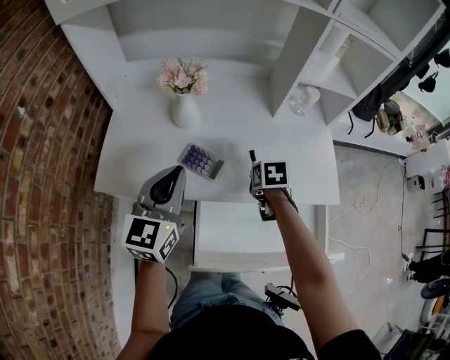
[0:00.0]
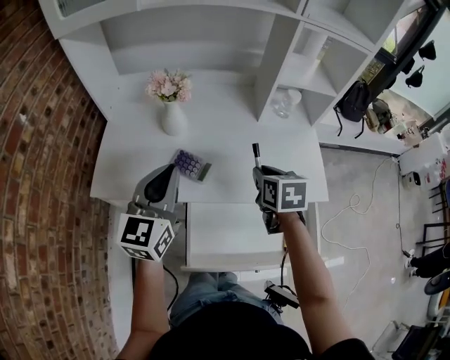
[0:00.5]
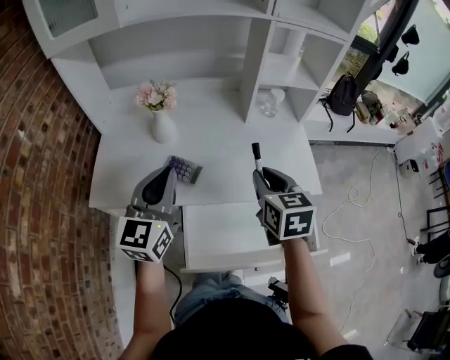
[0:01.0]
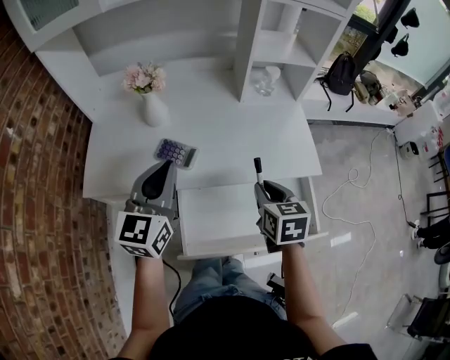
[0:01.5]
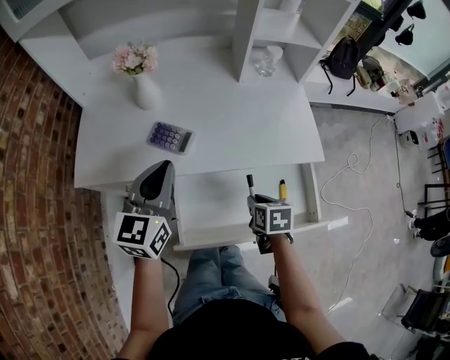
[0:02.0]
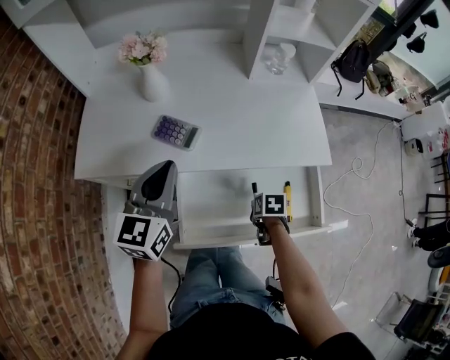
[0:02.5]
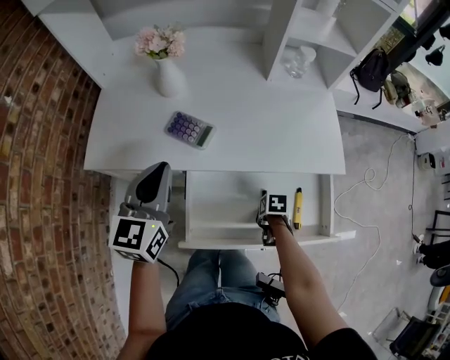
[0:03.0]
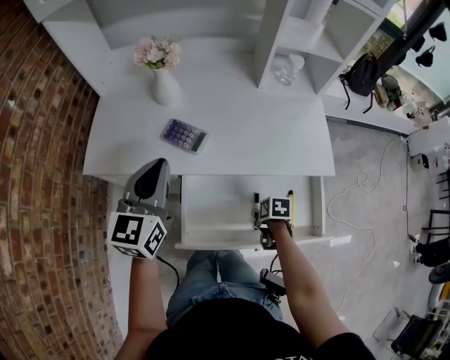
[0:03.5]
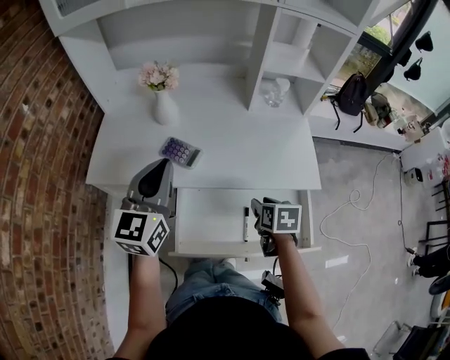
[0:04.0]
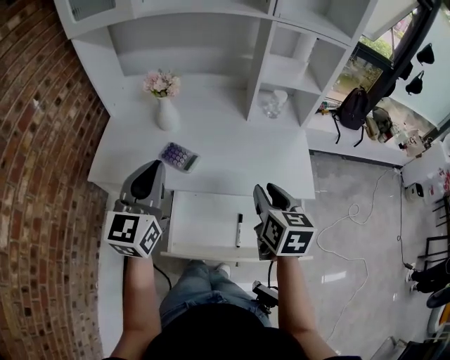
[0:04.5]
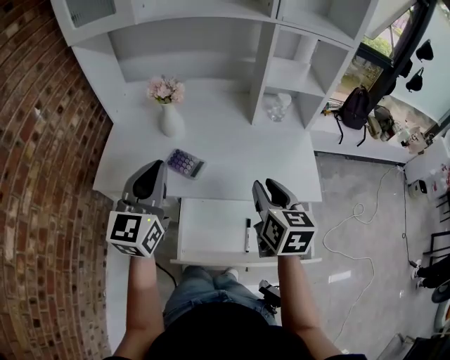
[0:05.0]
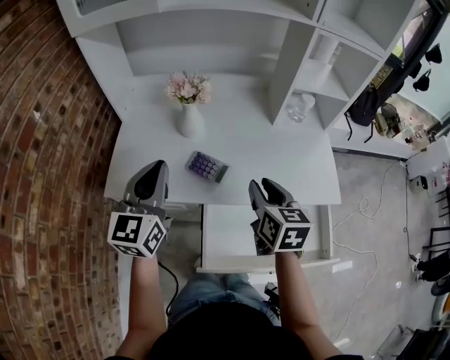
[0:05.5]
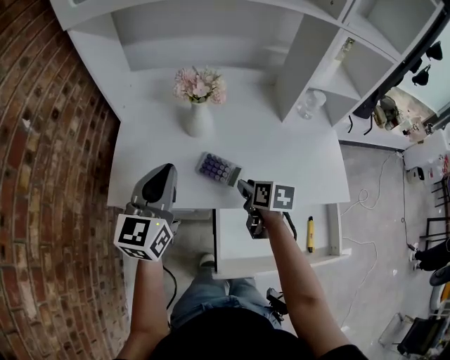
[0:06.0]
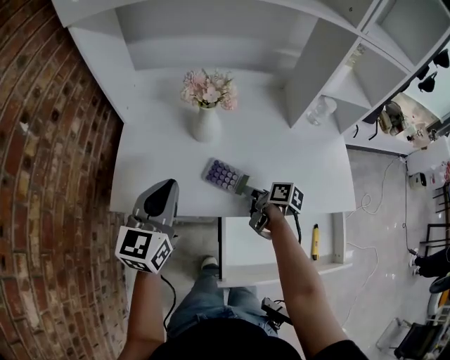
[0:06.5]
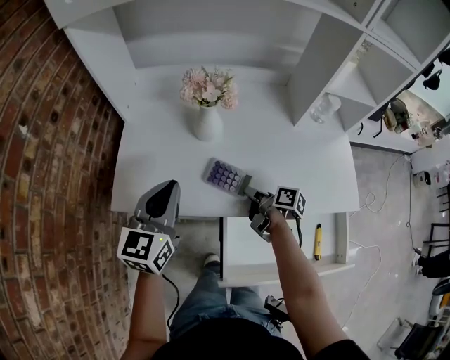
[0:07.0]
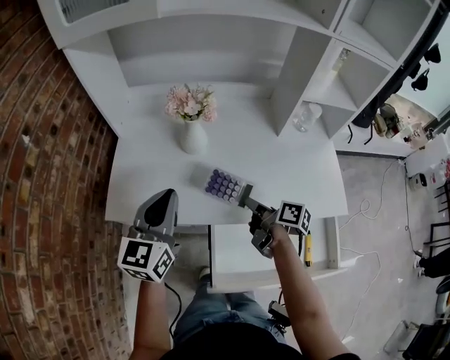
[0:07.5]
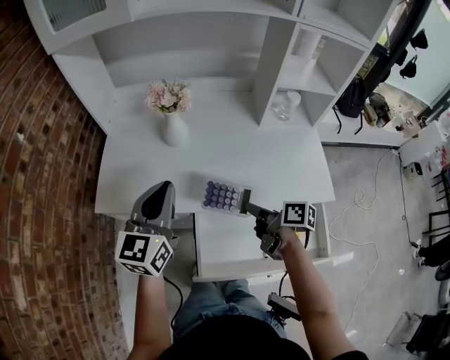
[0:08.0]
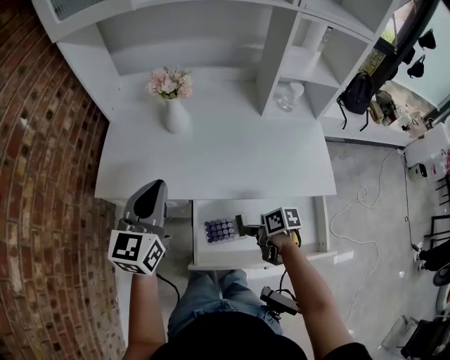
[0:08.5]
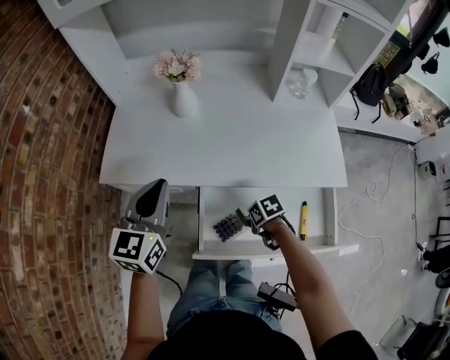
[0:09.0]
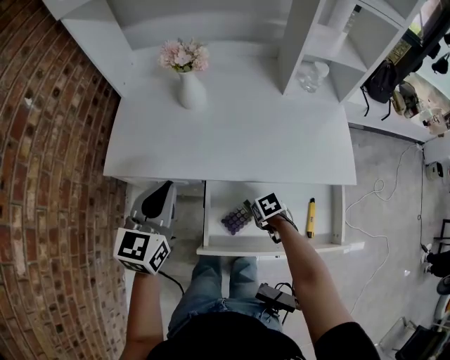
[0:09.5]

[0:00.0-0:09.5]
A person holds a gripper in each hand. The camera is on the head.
0:00.0 to 0:02.0: The left gripper shifts roughly 5 cm to the right; the right gripper goes about 20 cm backward and to the right, and moves roughly 20 cm upward and comes back.
0:02.0 to 0:04.0: The right gripper goes downward and returns, roughly 15 cm each way, while the left gripper heads upward, covering about 5 cm.
0:04.0 to 0:05.5: The left gripper goes some 10 cm to the left and forward; the right gripper is displaced upward, to the left and forward by about 20 cm, and turns by approximately 30 degrees.
0:05.5 to 0:07.5: The left gripper moves downward, approximately 5 cm; the right gripper is displaced downward by roughly 15 cm, and twists approximately 50 degrees clockwise, seen from behind.
0:07.5 to 0:09.5: The left gripper moves some 10 cm. The right gripper travels downward by approximately 20 cm, and tilts its fingers some 50 degrees downward.

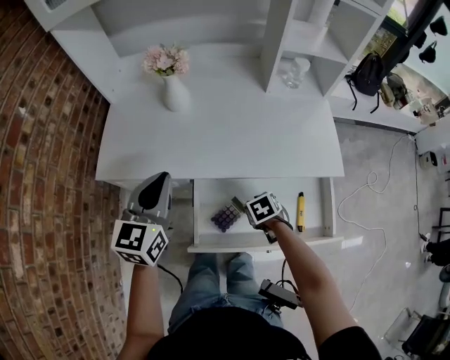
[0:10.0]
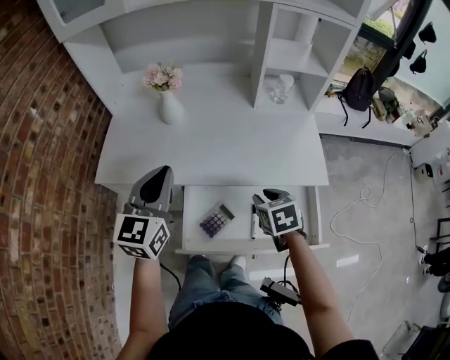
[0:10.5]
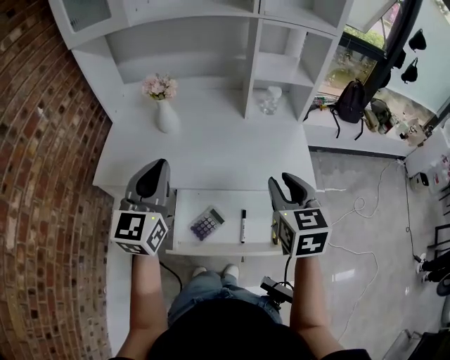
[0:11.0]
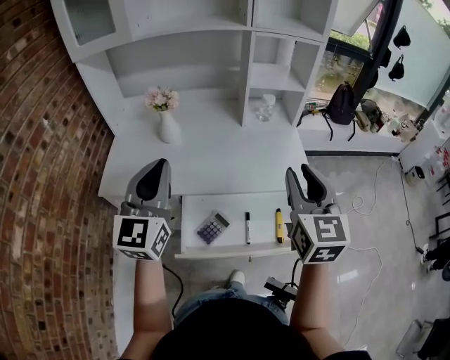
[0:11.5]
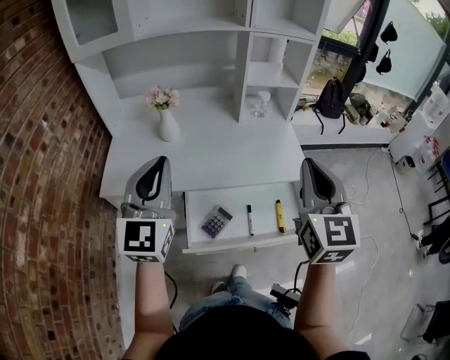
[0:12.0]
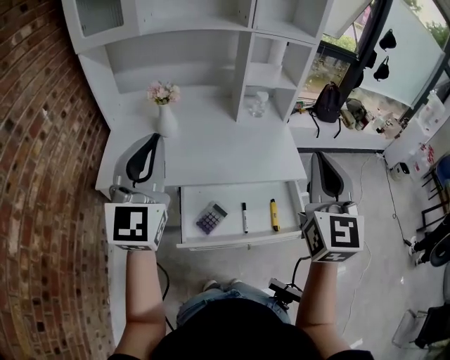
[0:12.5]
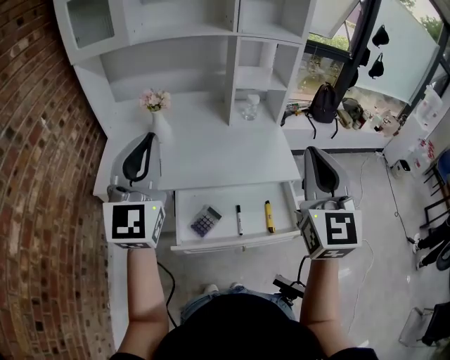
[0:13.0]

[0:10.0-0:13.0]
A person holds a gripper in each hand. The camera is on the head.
0:10.0 to 0:11.5: The right gripper is displaced upward by approximately 40 cm, and tips its fingers upward by approximately 60 degrees. The left gripper shifts approximately 15 cm upward and to the right, and swivels about 20 degrees.
0:11.5 to 0:13.0: The right gripper travels upward and backward by some 10 cm. The left gripper goes about 10 cm upward.

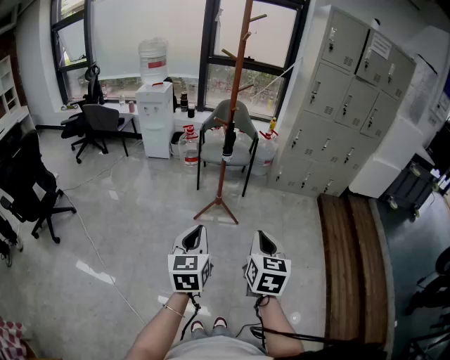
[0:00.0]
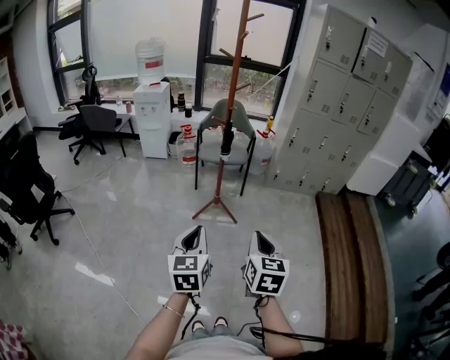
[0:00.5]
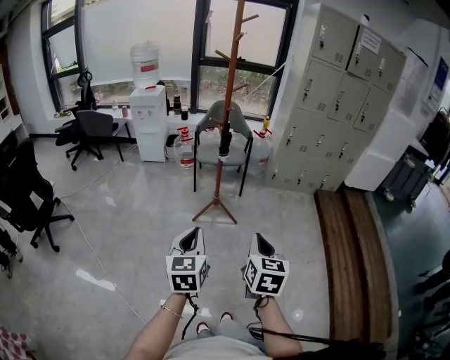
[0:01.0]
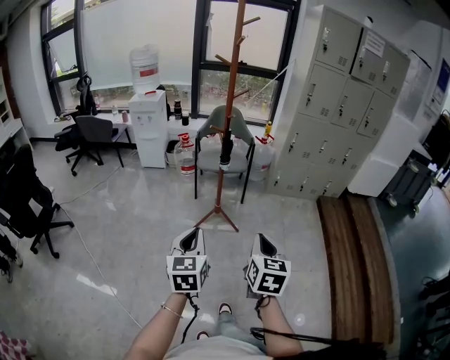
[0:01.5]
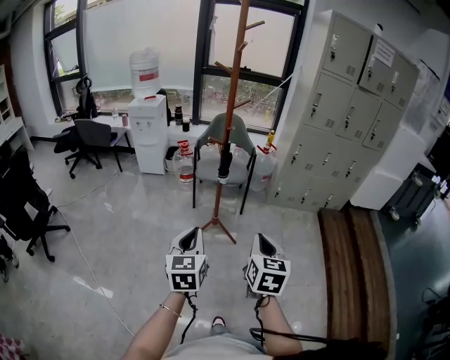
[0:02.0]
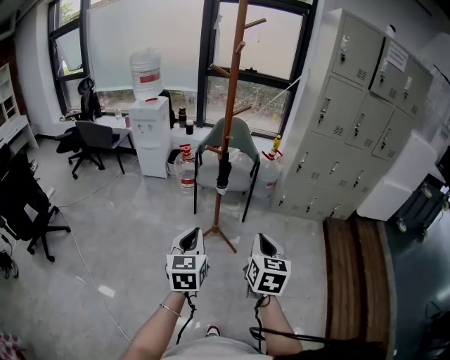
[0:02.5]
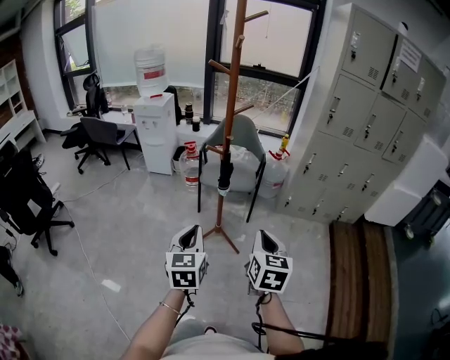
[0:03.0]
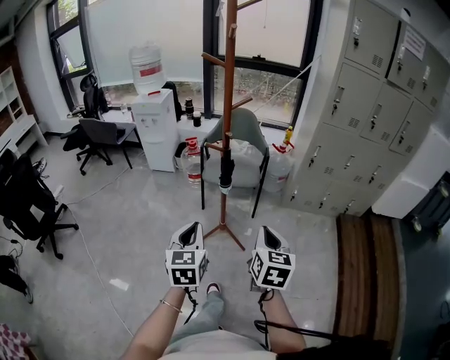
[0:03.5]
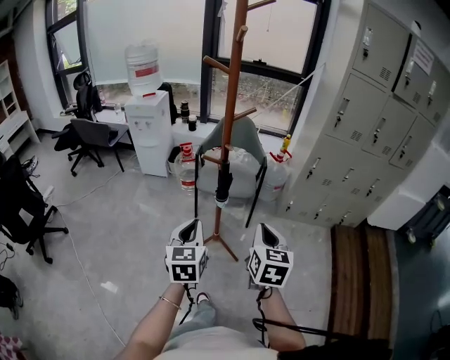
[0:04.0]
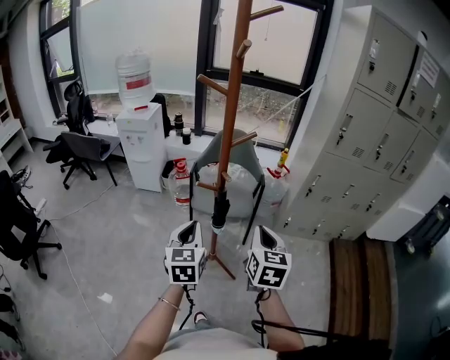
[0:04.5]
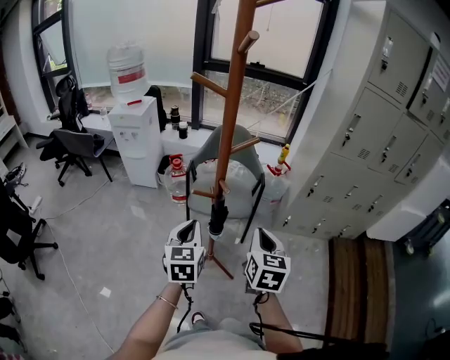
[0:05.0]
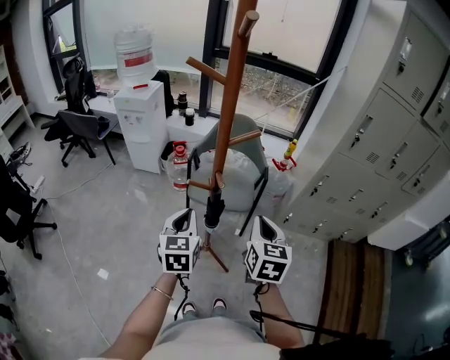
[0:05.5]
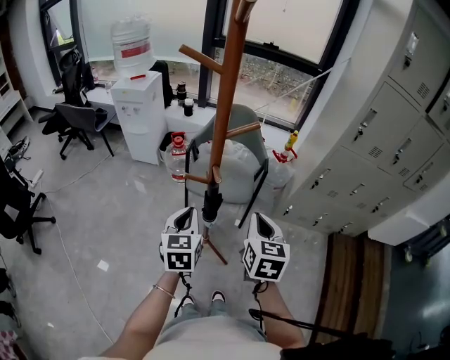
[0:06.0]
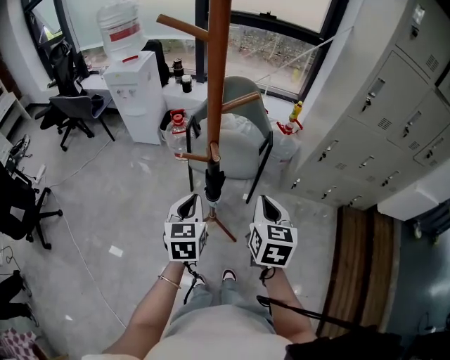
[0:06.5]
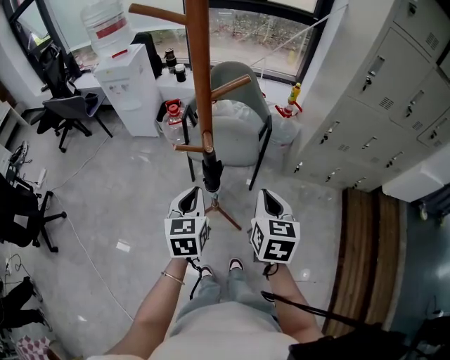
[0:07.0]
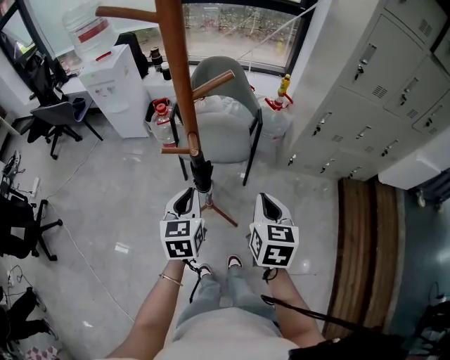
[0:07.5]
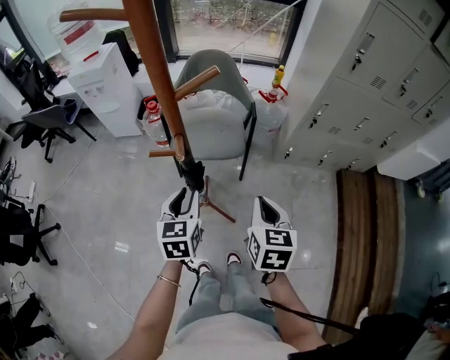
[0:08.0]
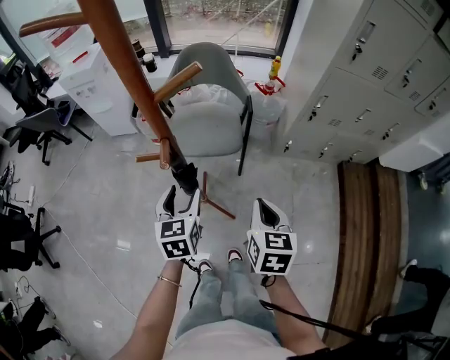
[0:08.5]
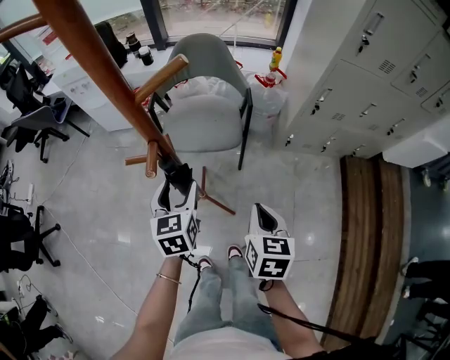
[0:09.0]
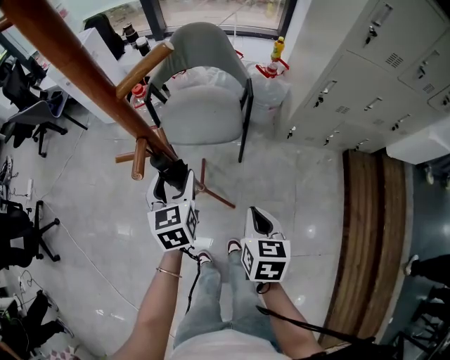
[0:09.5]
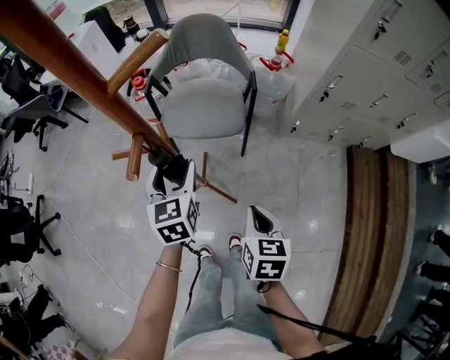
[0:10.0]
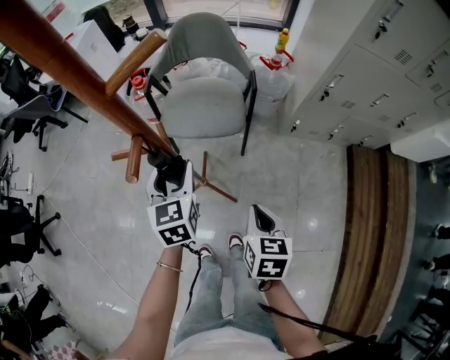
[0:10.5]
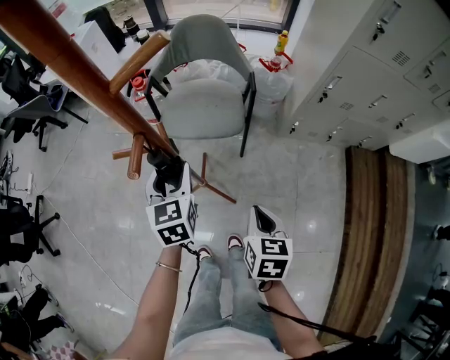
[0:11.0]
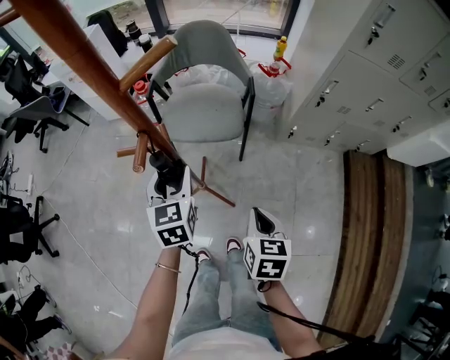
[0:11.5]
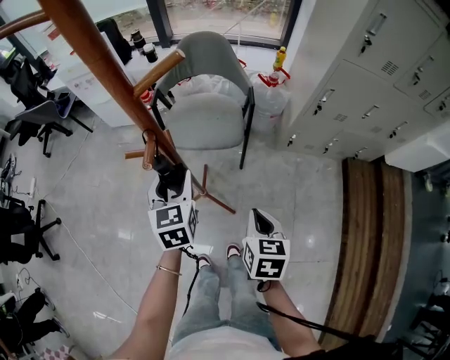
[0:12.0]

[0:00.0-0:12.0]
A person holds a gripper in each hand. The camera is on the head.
0:00.0 to 0:02.0: The two grippers go approximately 15 cm forward.
0:02.0 to 0:04.0: The two grippers go some 25 cm forward.
0:04.0 to 0:06.0: Both grippers travel together forward, about 20 cm.
0:06.0 to 0:08.0: The right gripper heads downward and to the right, covering approximately 10 cm. The left gripper goes roughly 10 cm downward.
0:08.0 to 0:10.0: The left gripper moves forward, approximately 10 cm, and opens up; the right gripper is displaced downward by about 10 cm.
0:10.0 to 0:12.0: The grippers move only a little.

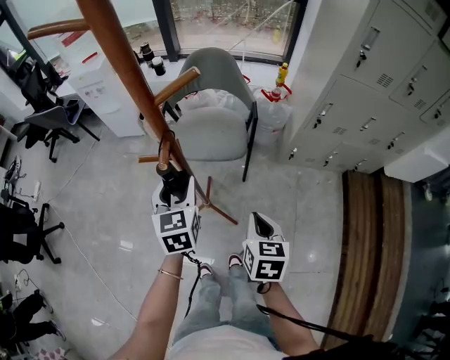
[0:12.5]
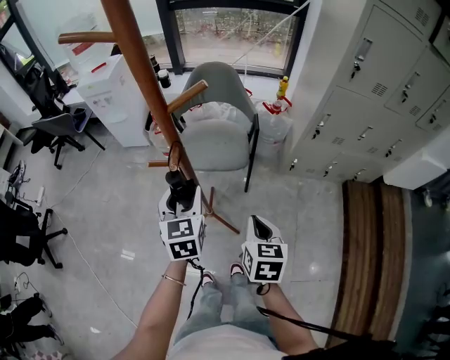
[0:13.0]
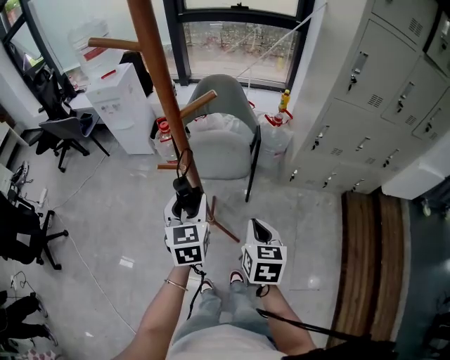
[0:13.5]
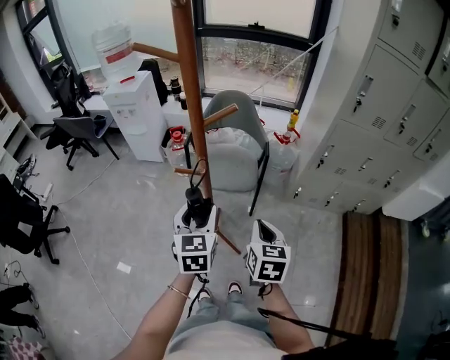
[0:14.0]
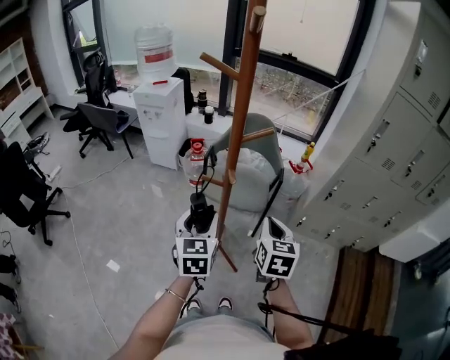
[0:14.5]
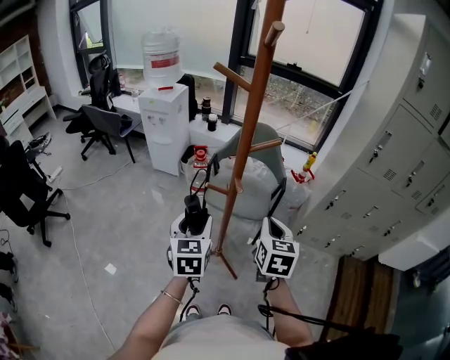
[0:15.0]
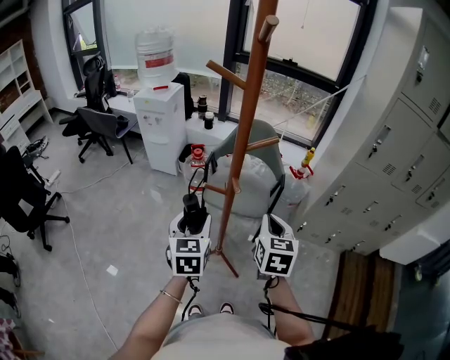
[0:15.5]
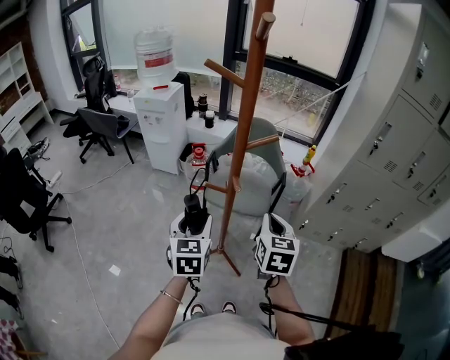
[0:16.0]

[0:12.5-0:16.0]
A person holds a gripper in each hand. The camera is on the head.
0:12.5 to 0:14.5: The right gripper travels upward by approximately 15 cm; the left gripper shifts approximately 15 cm backward, upward and to the left.
0:14.5 to 0:16.0: There are only small adjustments of the grippers.
